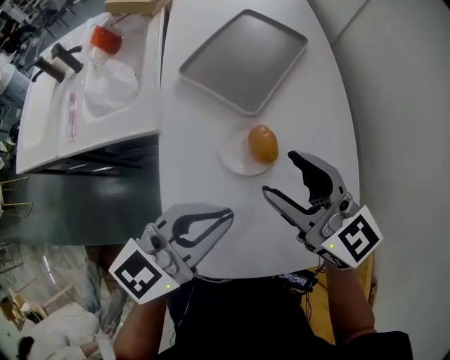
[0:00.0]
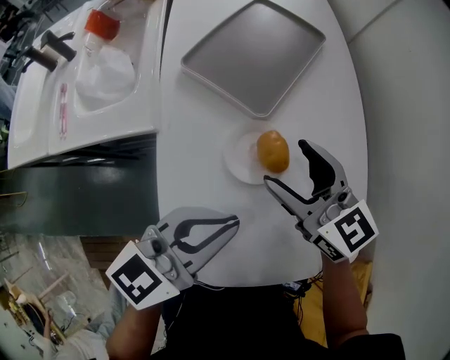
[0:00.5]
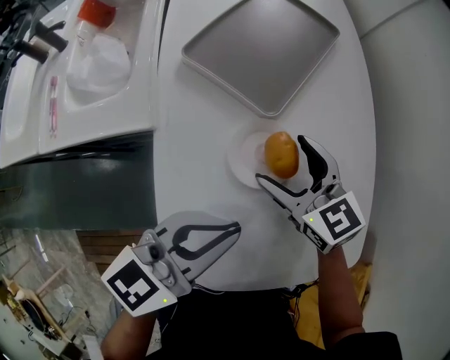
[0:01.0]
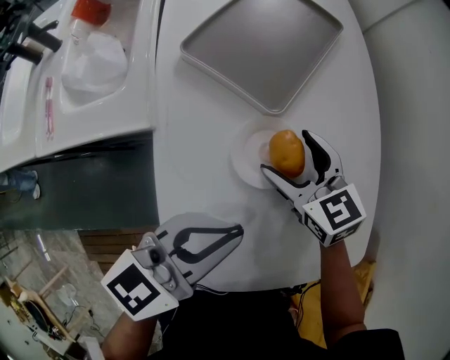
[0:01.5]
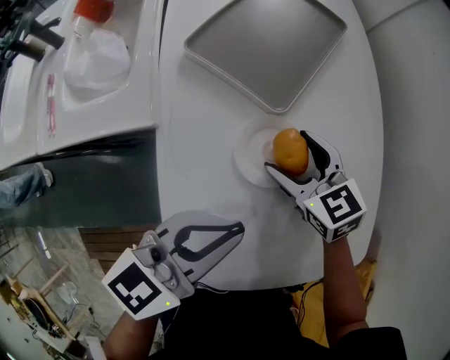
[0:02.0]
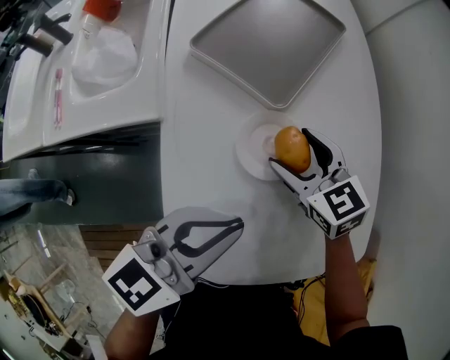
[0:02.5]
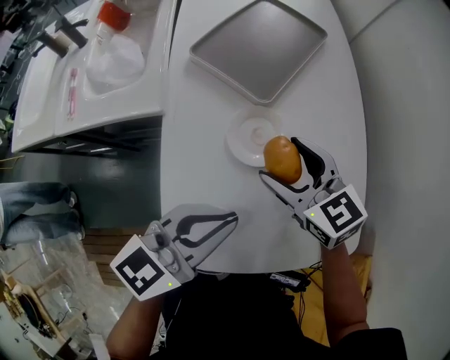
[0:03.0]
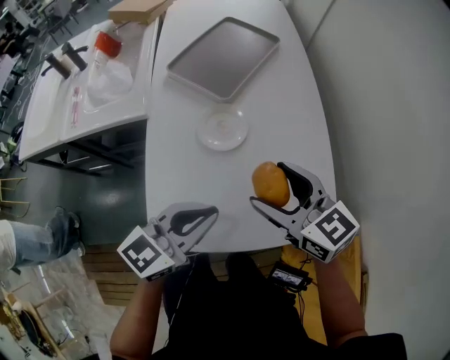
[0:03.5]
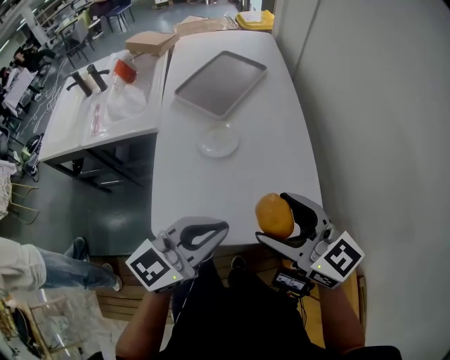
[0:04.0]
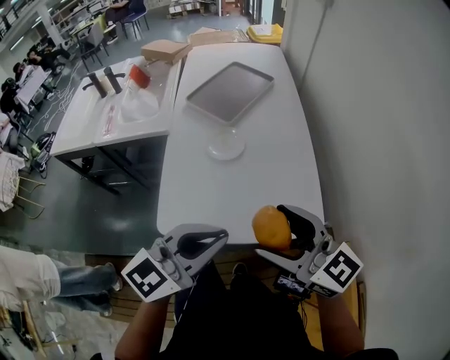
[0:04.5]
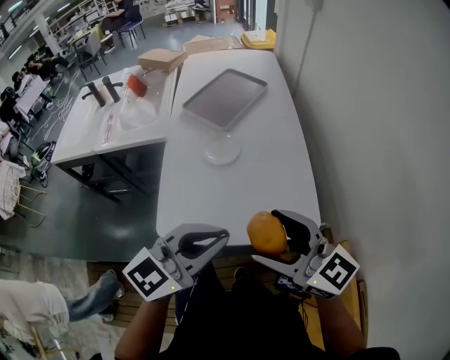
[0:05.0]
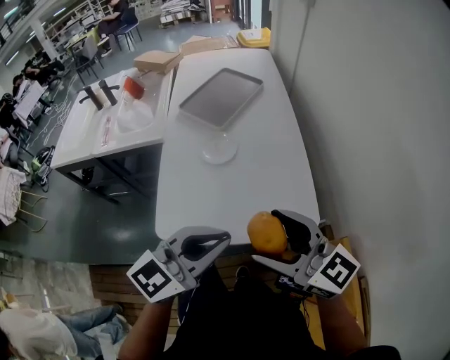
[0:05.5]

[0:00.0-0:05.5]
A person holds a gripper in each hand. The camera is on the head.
0:00.0 to 0:02.0: The right gripper heads downward and forward, covering some 20 cm, rotates roughly 30 degrees, and opens up. Meanwhile the left gripper heads downward, covering roughly 5 cm.
0:02.0 to 0:03.5: The left gripper travels backward and to the right by about 15 cm. The right gripper shifts roughly 25 cm backward, upward and to the right.
0:03.5 to 0:05.5: The right gripper travels backward and upward by some 25 cm, and turns by some 20 degrees; the left gripper travels backward, upward and to the right by roughly 25 cm.

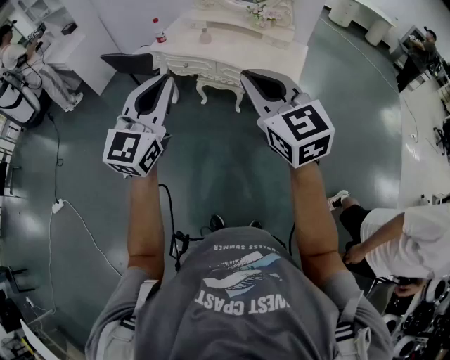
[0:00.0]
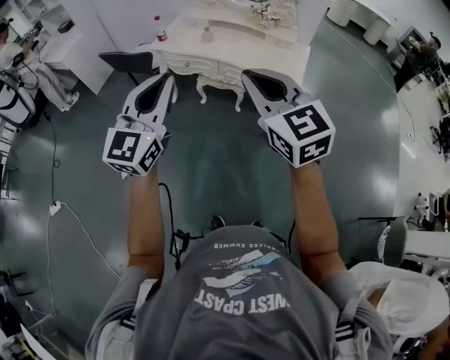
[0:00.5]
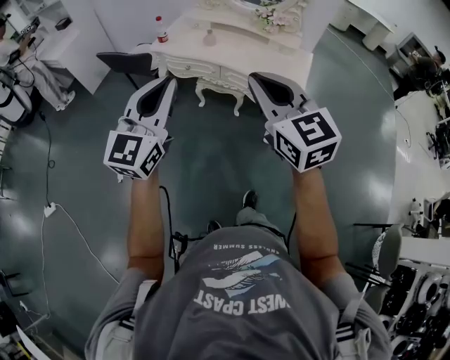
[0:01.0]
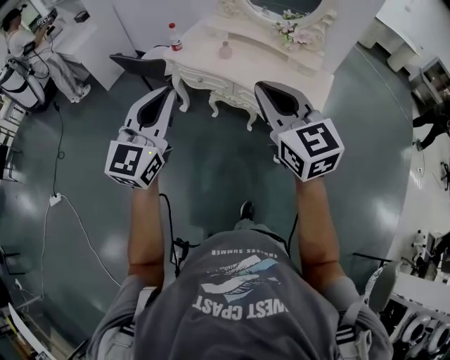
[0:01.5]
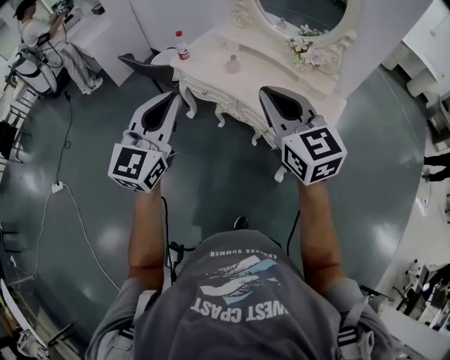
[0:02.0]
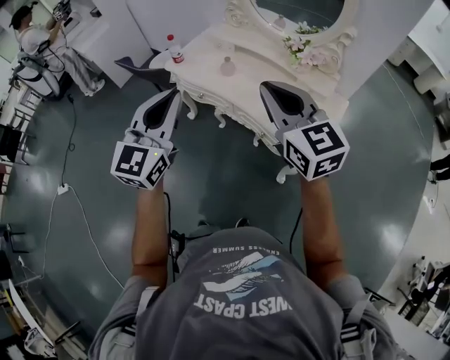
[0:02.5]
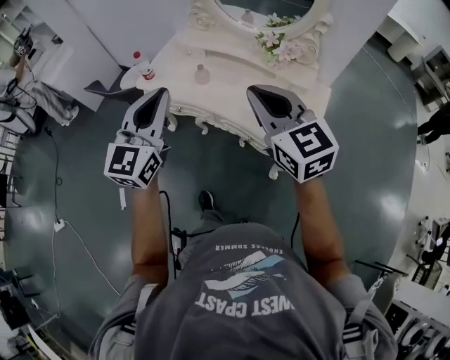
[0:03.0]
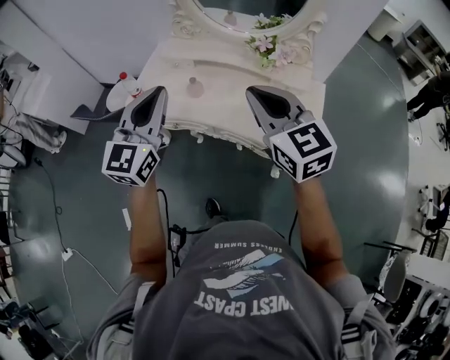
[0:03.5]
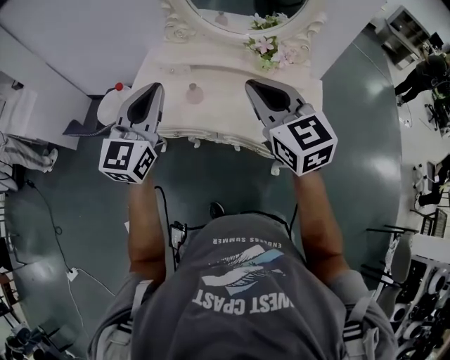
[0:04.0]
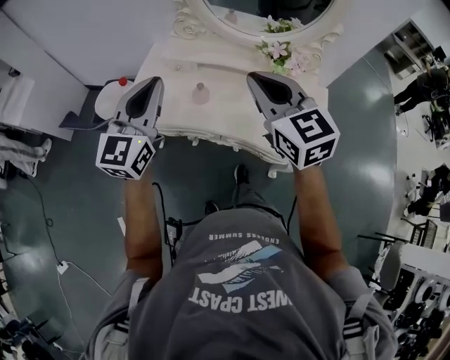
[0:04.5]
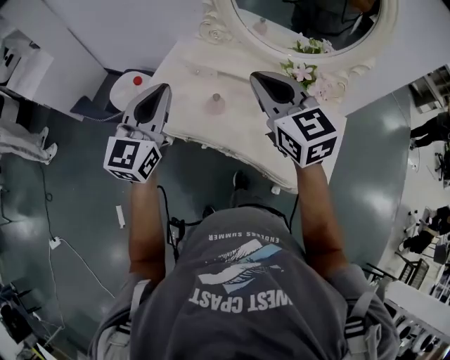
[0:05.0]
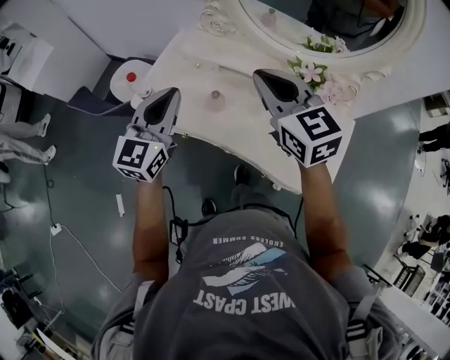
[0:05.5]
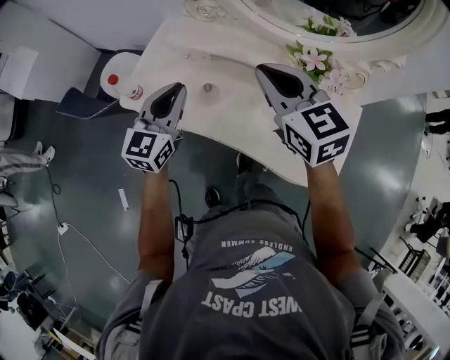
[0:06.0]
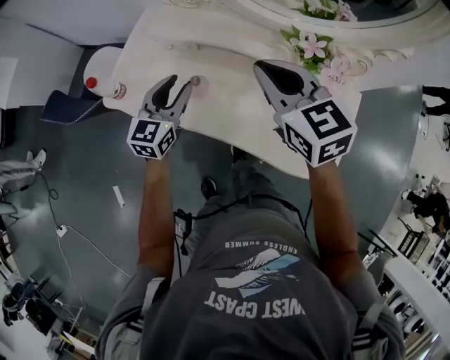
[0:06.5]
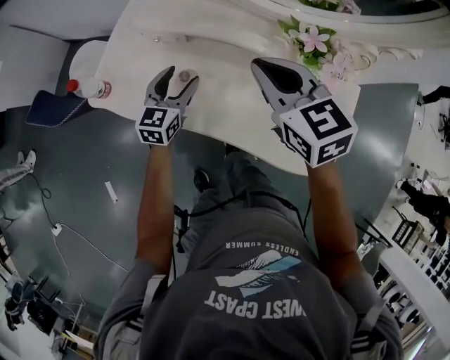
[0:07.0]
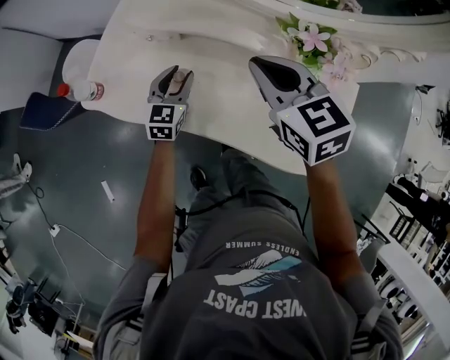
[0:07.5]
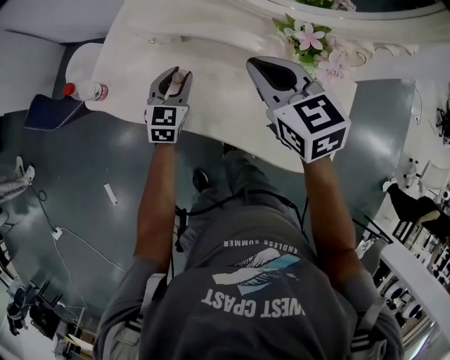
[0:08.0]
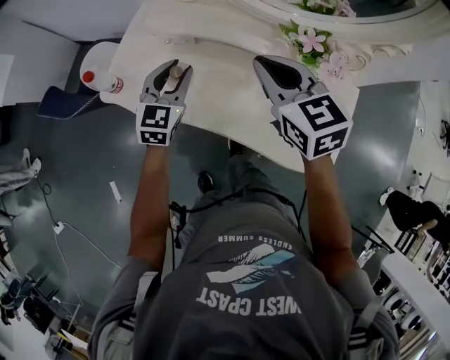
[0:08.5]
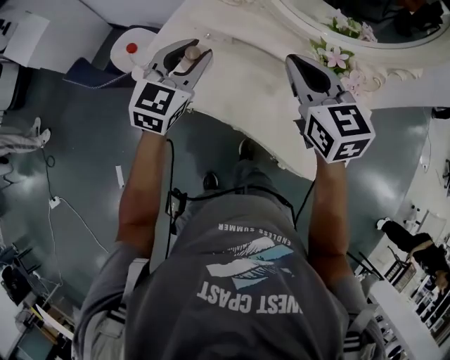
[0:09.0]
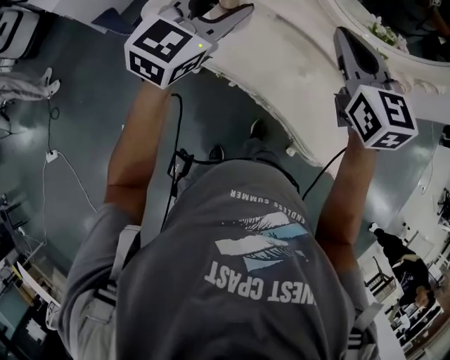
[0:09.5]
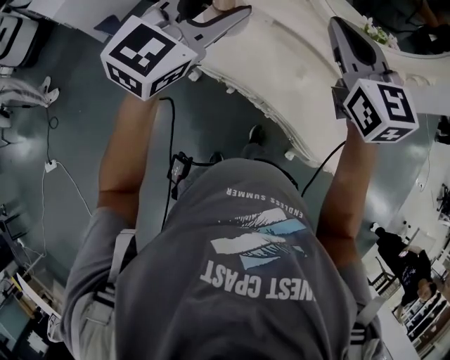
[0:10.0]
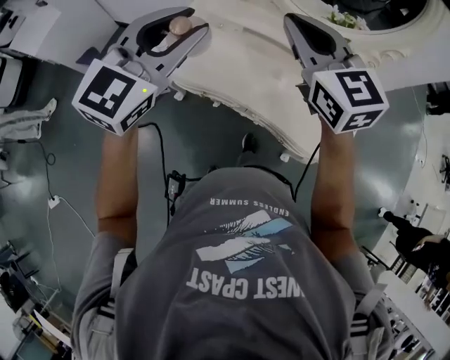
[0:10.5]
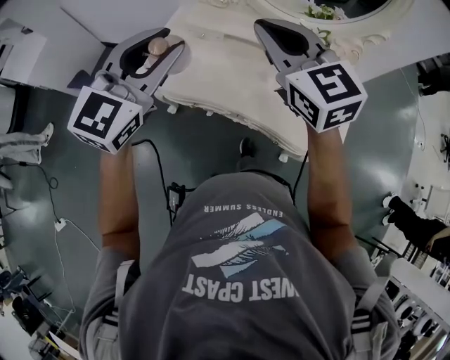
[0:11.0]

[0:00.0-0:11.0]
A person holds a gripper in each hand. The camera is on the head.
0:00.0 to 0:02.0: The two grippers go approximately 25 cm forward.
0:02.0 to 0:03.5: The two grippers go some 20 cm forward.
0:03.5 to 0:05.5: The right gripper moves forward, approximately 20 cm; the left gripper shifts about 20 cm forward and downward.
0:05.5 to 0:07.5: The right gripper is displaced downward and to the right by roughly 15 cm, while the left gripper moves downward, approximately 30 cm, and opens its fingers.
0:07.5 to 0:09.0: The left gripper heads upward, covering roughly 25 cm, while the right gripper is displaced upward by approximately 10 cm.
0:09.0 to 0:11.0: The left gripper moves upward and backward, approximately 20 cm; the right gripper shifts about 15 cm upward, to the left and backward.

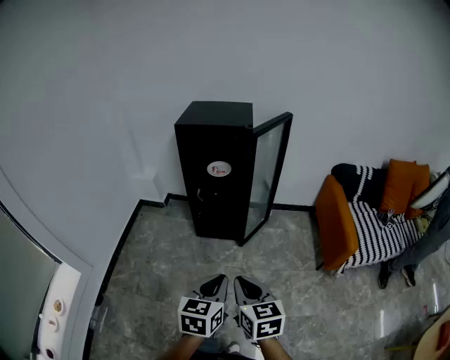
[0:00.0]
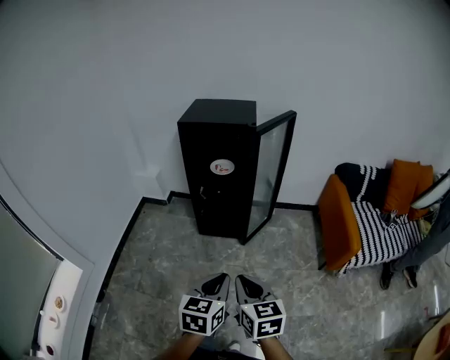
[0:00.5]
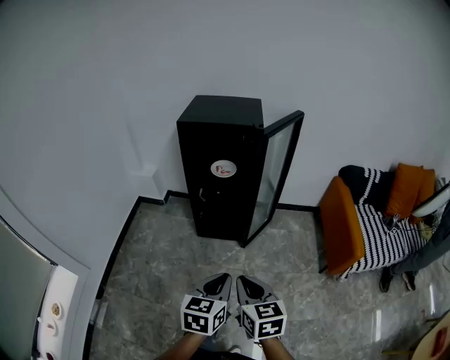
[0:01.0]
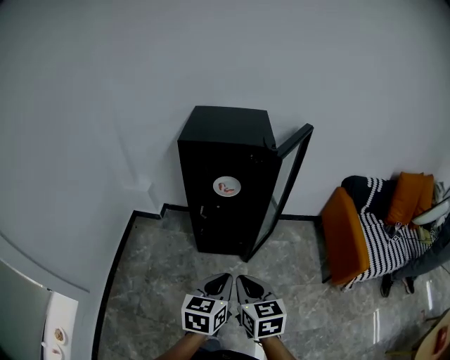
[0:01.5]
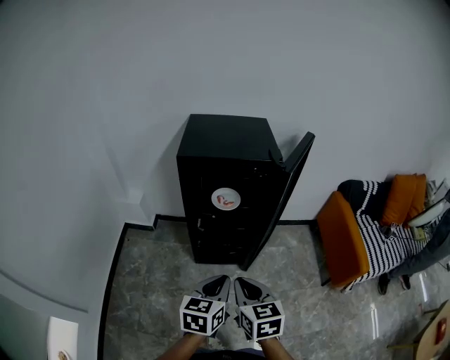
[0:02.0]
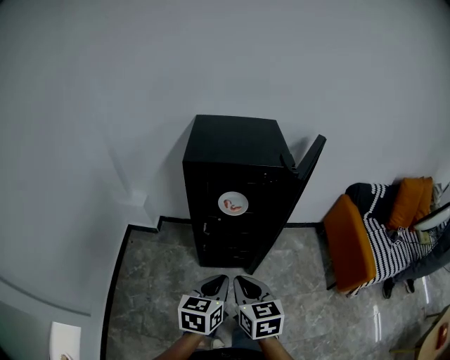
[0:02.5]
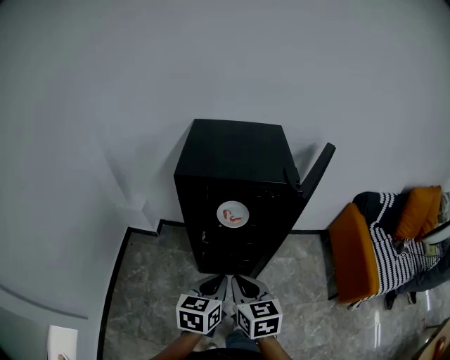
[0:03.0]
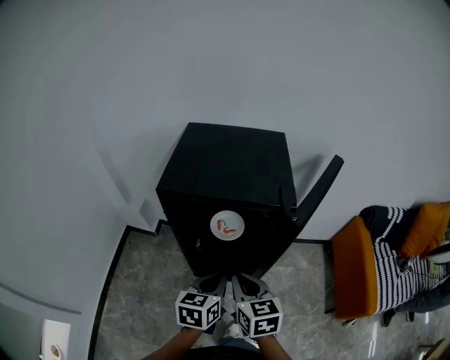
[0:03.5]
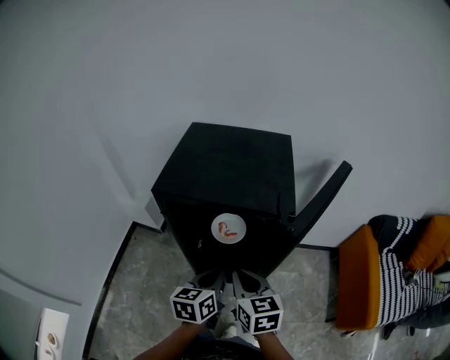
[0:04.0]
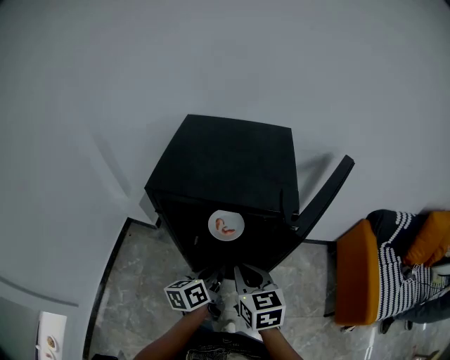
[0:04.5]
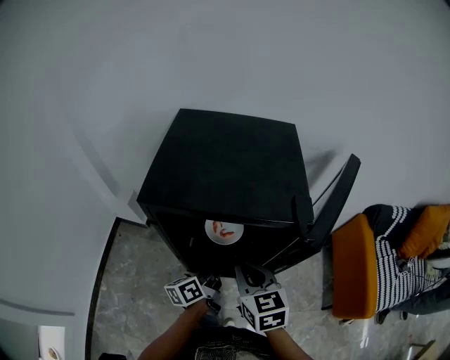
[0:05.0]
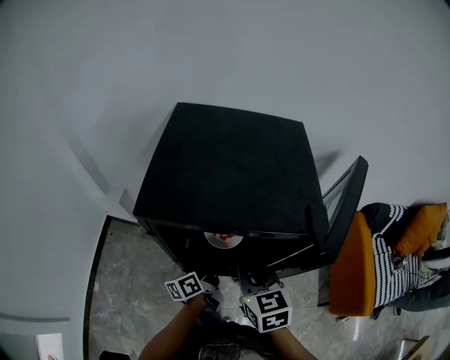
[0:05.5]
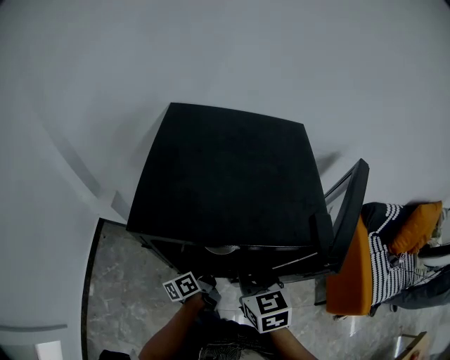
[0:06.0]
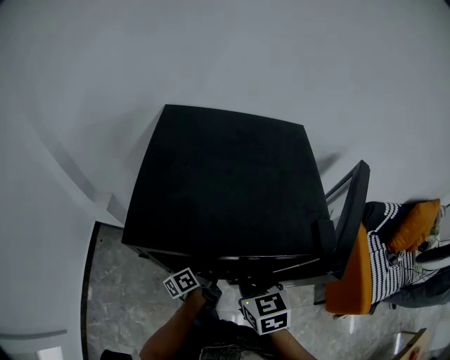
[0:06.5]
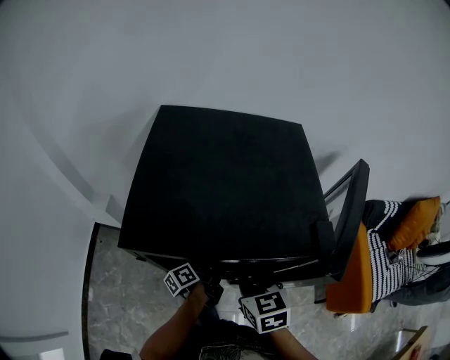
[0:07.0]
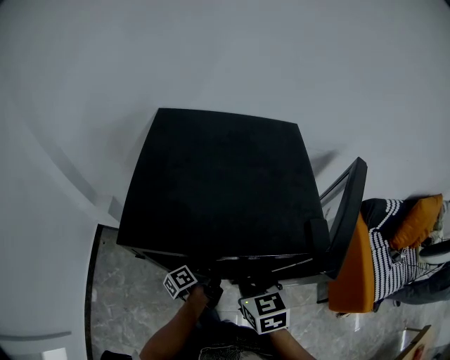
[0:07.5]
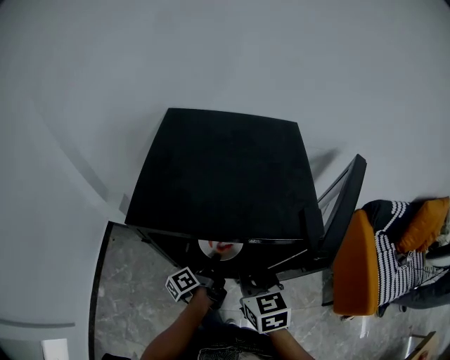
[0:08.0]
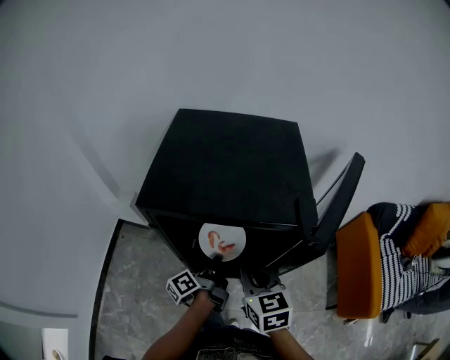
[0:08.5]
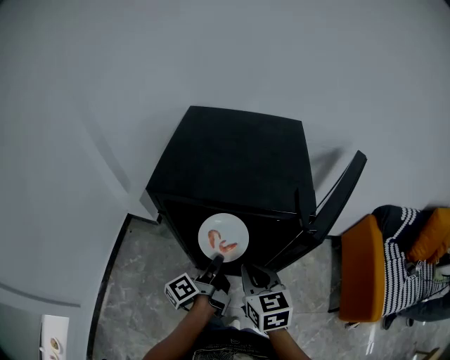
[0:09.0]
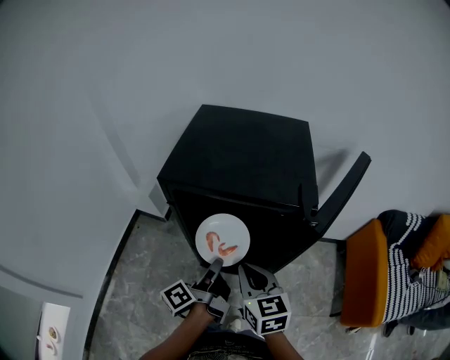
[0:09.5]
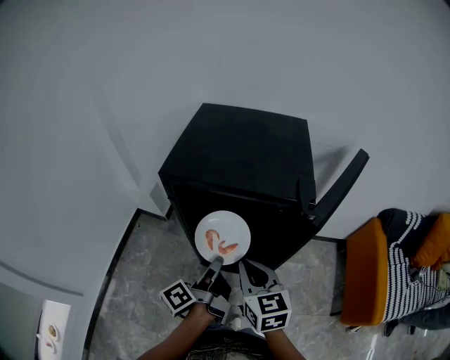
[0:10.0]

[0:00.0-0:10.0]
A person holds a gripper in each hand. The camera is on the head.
0:00.0 to 0:02.0: Both grippers move forward and to the left, approximately 30 cm.
0:02.0 to 0:04.0: Both grippers move forward, roughly 25 cm.
0:04.0 to 0:06.0: The left gripper heads downward and forward, covering approximately 25 cm, twists roughly 40 degrees counterclockwise, seen from behind, and opens up; the right gripper is displaced forward by approximately 10 cm.
0:06.0 to 0:08.0: The left gripper closes.
0:08.0 to 0:10.0: The left gripper is displaced upward and backward by approximately 20 cm, while the right gripper goes approximately 10 cm backward.
